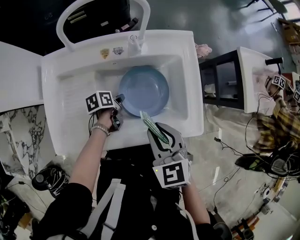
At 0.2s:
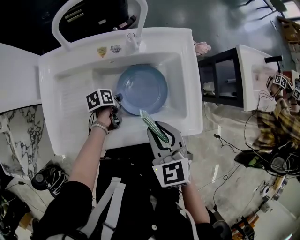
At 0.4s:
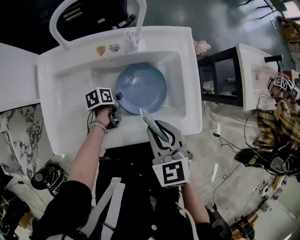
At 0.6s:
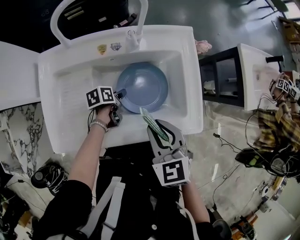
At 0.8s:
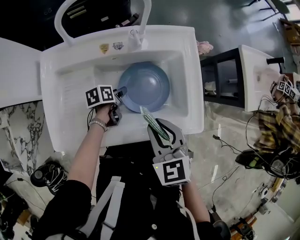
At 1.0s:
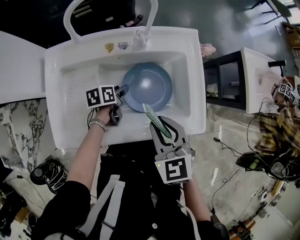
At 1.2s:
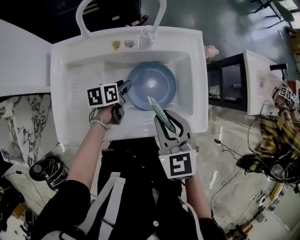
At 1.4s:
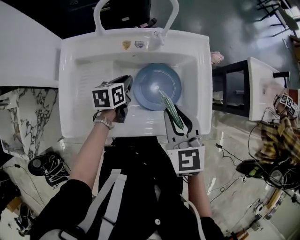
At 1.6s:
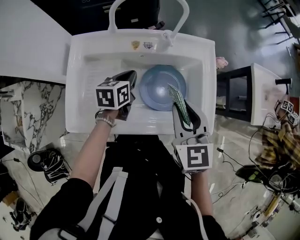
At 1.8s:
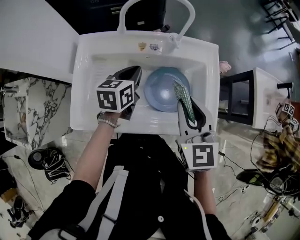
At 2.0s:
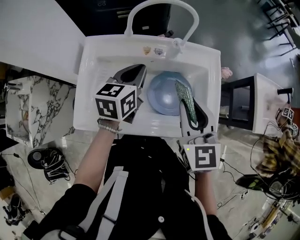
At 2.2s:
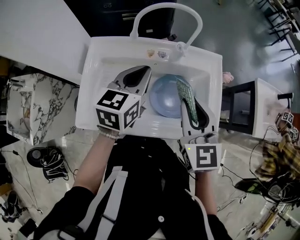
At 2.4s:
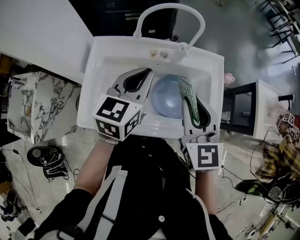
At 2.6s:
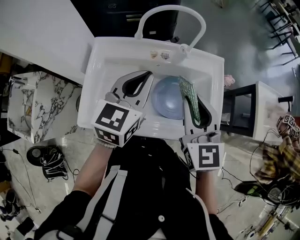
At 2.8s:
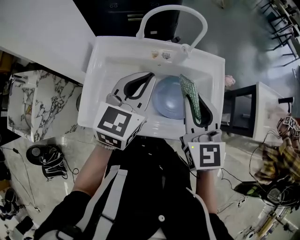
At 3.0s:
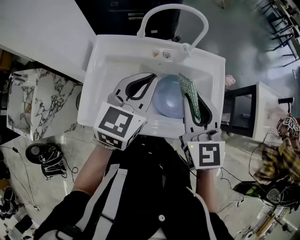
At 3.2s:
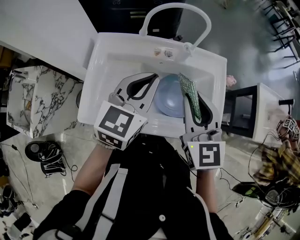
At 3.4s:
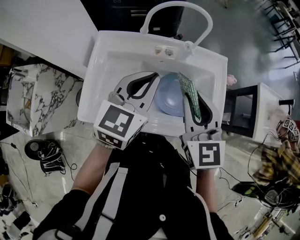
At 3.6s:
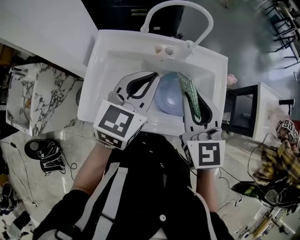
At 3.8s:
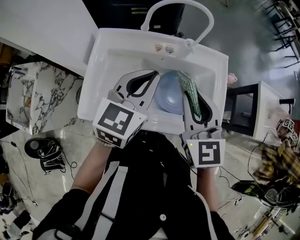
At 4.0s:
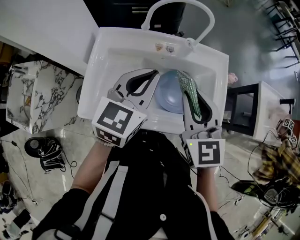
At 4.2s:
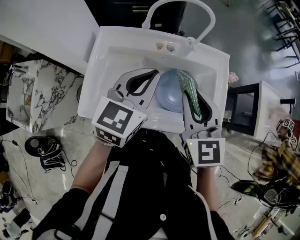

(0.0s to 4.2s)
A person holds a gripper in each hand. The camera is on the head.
0.0s - 1.4s: The left gripper heads upward, covering approximately 10 cm, turns by some 30 degrees, and opens and closes again. Meanwhile the right gripper moves about 5 cm.
1.4s - 2.8s: The right gripper shifts roughly 10 cm upward. Meanwhile the left gripper shifts roughly 25 cm upward, and changes its angle by some 40 degrees.
2.8s - 4.2s: The grippers stay close to where they were, moving slightly.

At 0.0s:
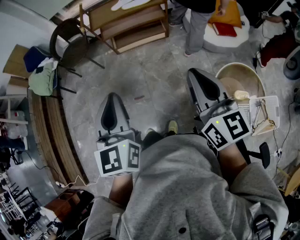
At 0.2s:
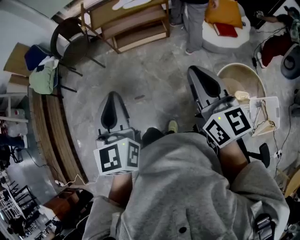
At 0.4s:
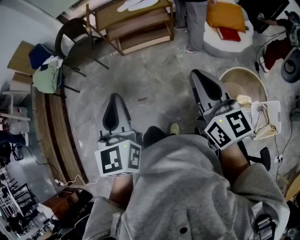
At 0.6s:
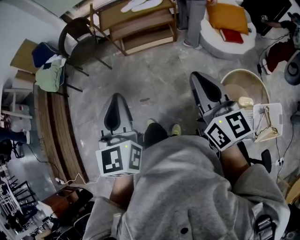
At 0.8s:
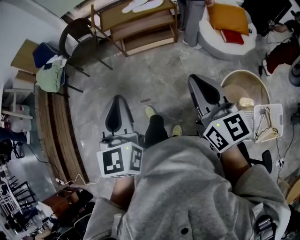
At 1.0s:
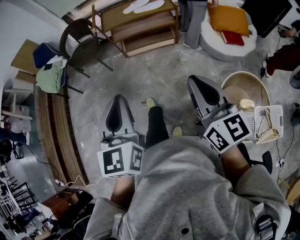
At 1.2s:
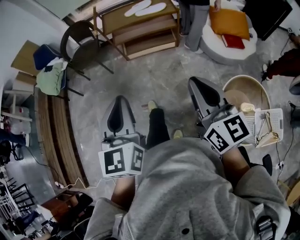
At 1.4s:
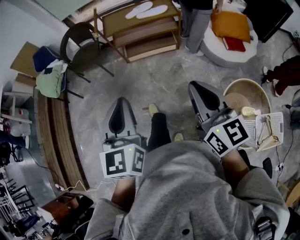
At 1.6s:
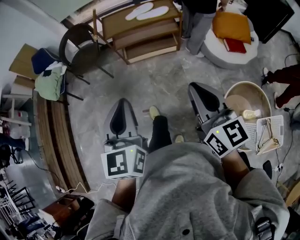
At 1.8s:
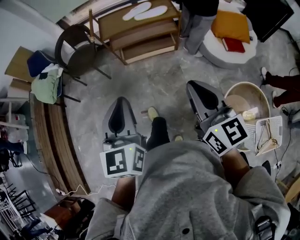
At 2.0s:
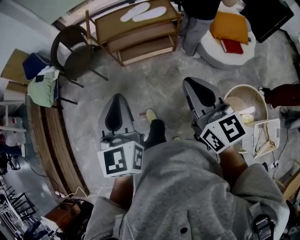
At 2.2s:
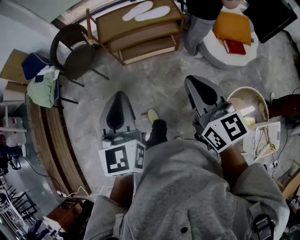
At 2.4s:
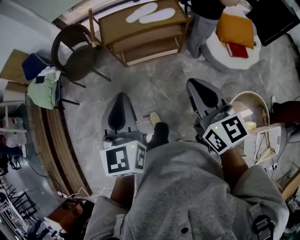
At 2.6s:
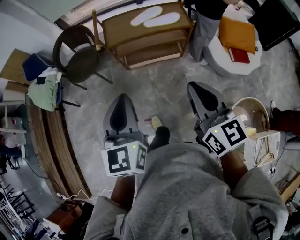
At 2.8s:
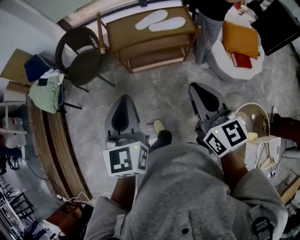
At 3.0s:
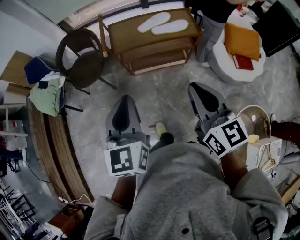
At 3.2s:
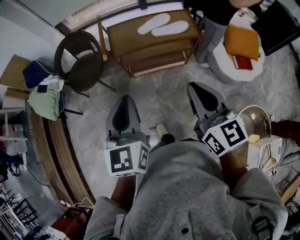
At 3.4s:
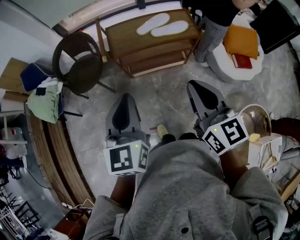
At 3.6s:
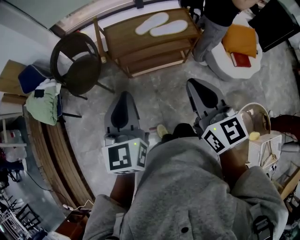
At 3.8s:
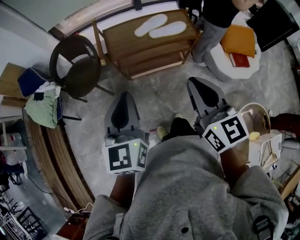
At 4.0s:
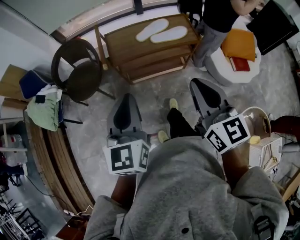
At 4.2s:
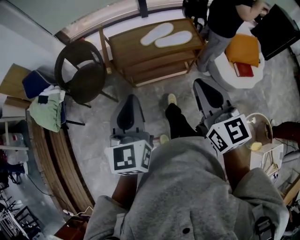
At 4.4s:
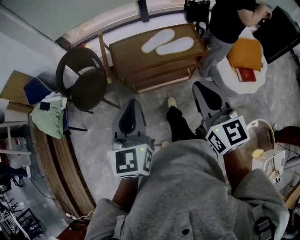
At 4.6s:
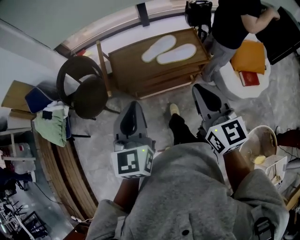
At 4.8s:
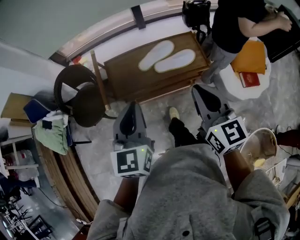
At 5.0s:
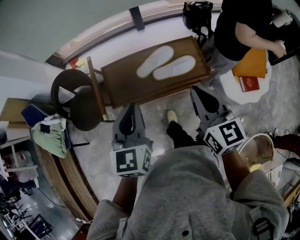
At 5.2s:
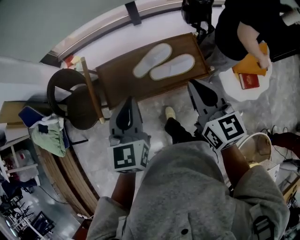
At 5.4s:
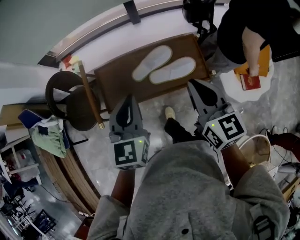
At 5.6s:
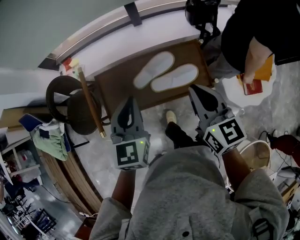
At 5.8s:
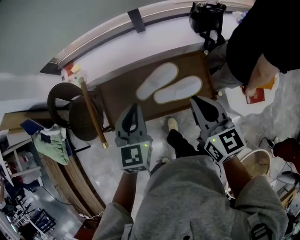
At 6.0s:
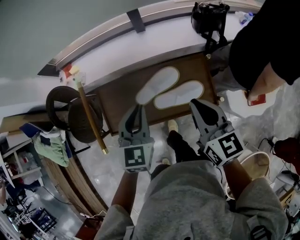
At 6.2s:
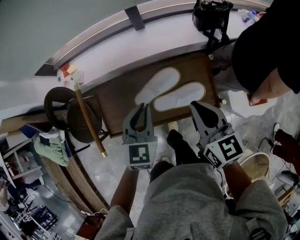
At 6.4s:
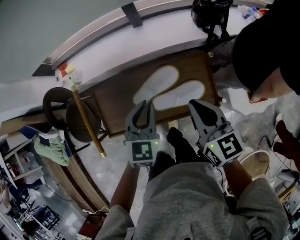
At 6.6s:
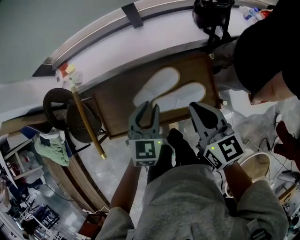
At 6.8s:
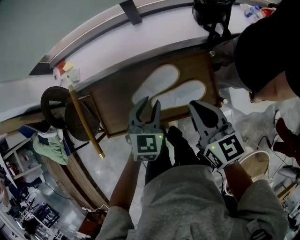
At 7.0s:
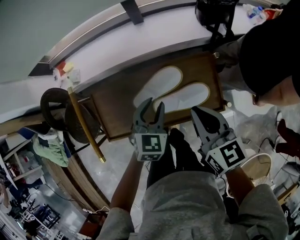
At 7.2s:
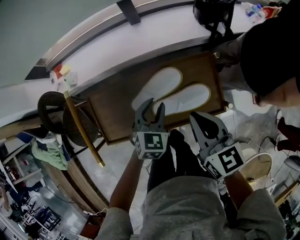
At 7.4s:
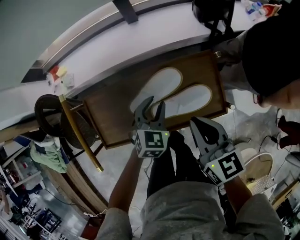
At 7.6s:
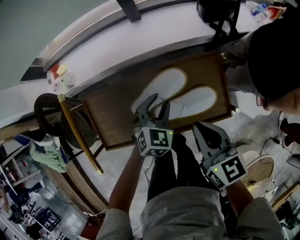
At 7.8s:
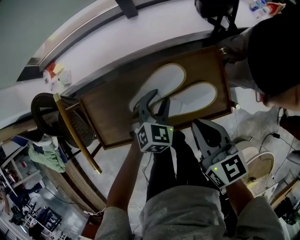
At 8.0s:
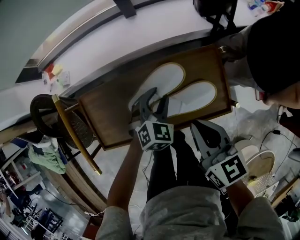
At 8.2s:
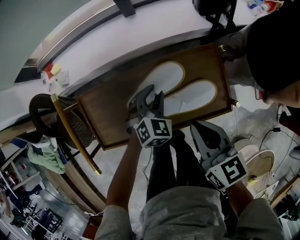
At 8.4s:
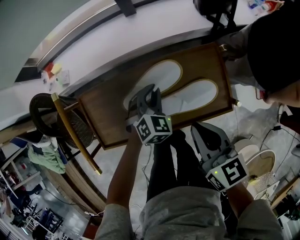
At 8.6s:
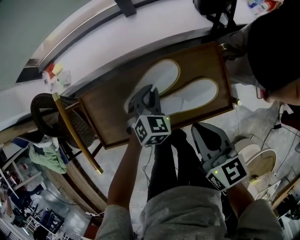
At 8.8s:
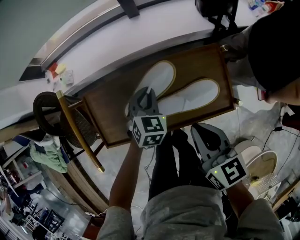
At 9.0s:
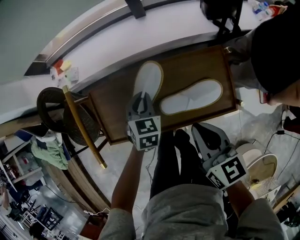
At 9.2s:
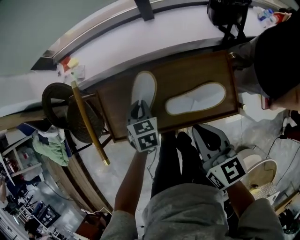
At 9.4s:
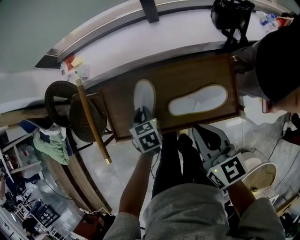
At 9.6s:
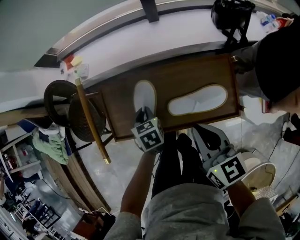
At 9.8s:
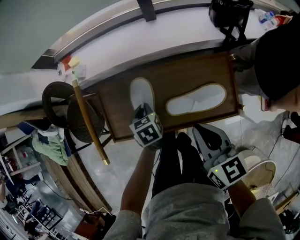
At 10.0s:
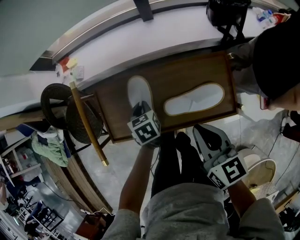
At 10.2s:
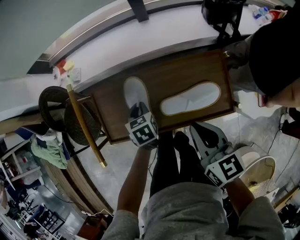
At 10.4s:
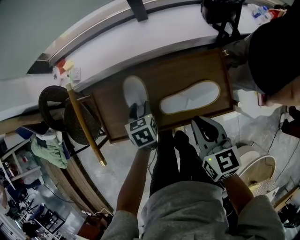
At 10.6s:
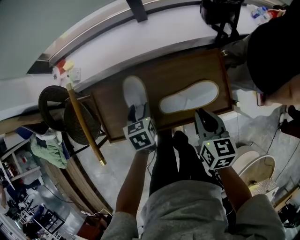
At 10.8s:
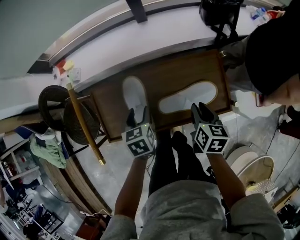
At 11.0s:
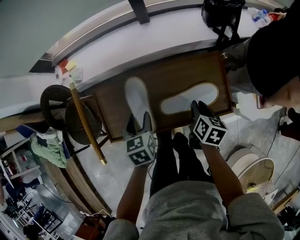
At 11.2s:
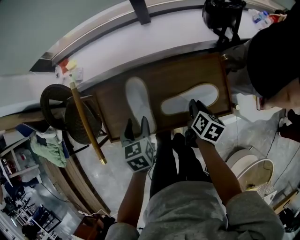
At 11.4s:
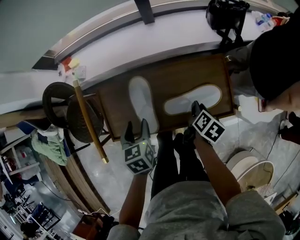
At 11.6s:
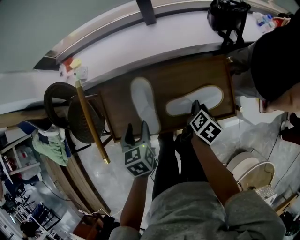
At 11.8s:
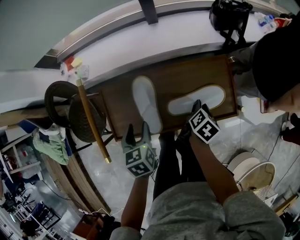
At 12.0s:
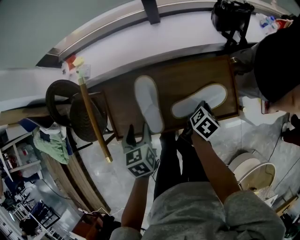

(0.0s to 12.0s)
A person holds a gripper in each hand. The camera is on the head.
0.0s - 1.6s: Both grippers travel together forward, about 5 cm.
1.6s - 3.0s: The grippers both shift forward by approximately 25 cm.
3.0s - 4.4s: Both grippers move forward, about 15 cm.
4.4s - 6.0s: Both grippers move forward, approximately 40 cm.
6.0s - 7.6s: The right gripper heads downward, covering some 15 cm; the left gripper is displaced downward by about 20 cm, swivels some 30 degrees, and opens up.
7.6s - 9.0s: The left gripper is displaced to the left by some 10 cm, turns by some 20 degrees, and closes.
9.0s - 10.4s: The left gripper ends up about 5 cm from where it was, rotates approximately 30 degrees, and opens.
10.4s - 12.0s: The left gripper shifts roughly 10 cm backward, upward and to the left, while the right gripper is displaced downward by approximately 15 cm, rotates about 60 degrees, and opens and closes again.

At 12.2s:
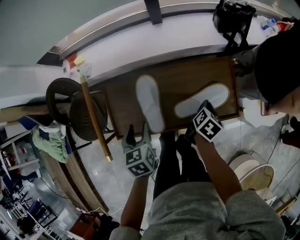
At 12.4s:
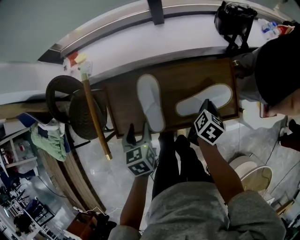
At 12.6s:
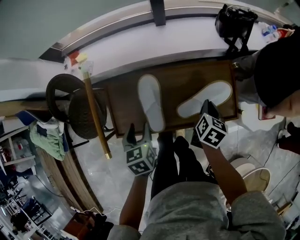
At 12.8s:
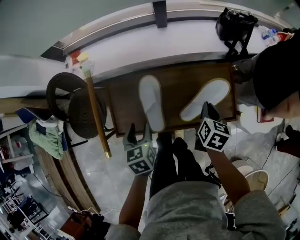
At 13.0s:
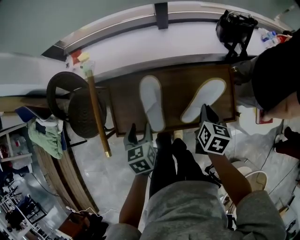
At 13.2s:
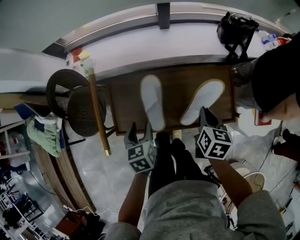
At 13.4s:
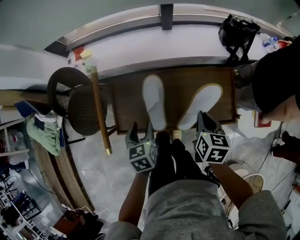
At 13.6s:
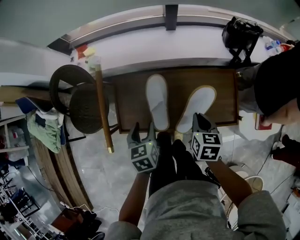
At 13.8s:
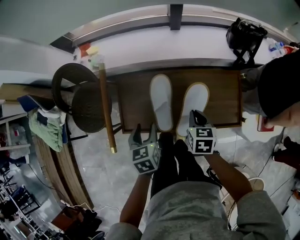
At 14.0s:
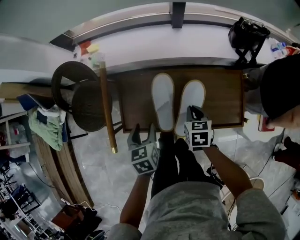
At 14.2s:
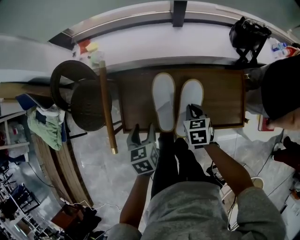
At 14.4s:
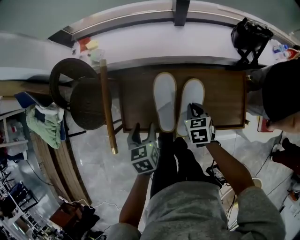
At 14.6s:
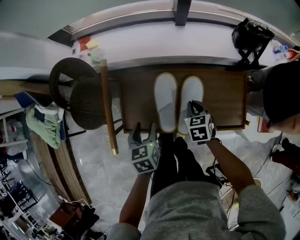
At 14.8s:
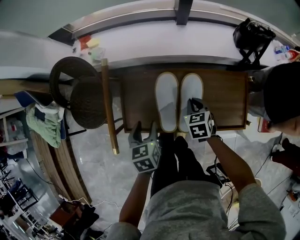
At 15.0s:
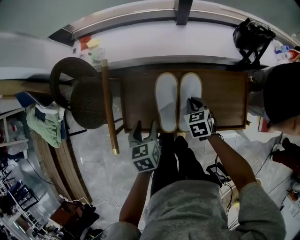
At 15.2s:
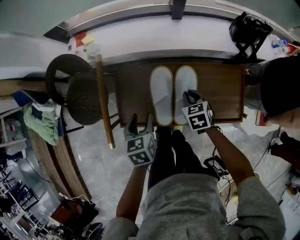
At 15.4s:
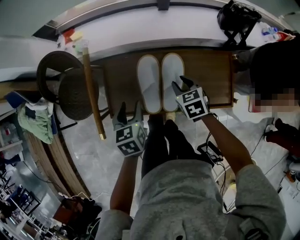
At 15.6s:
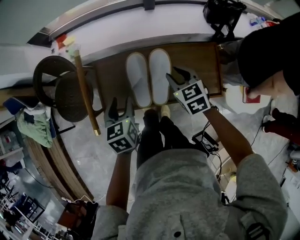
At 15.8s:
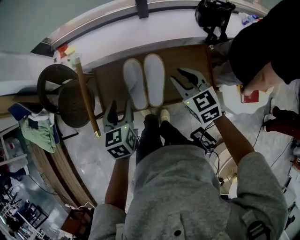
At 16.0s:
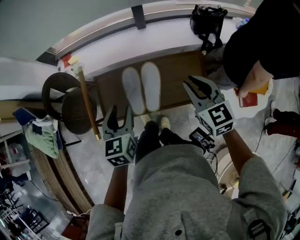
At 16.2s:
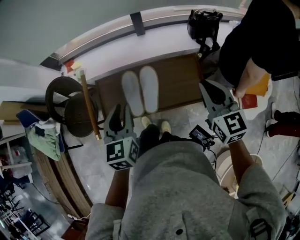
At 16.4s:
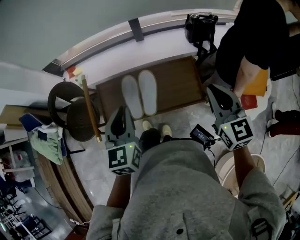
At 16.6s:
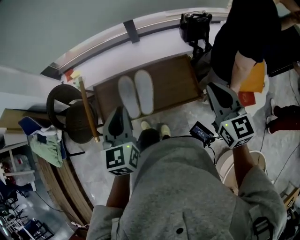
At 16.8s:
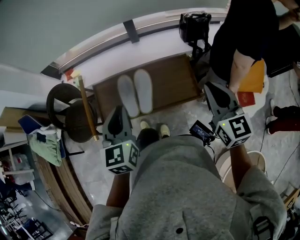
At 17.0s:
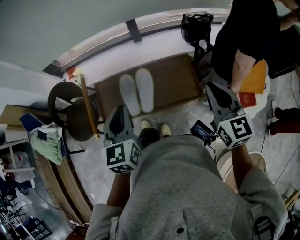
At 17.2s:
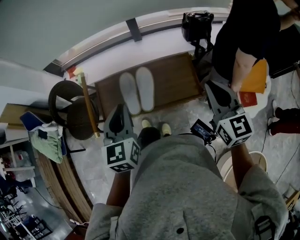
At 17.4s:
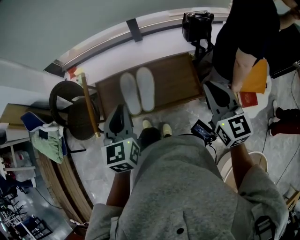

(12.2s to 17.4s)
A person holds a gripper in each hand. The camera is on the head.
12.2s - 14.0s: The right gripper travels to the left by roughly 15 cm, and twists roughly 50 degrees counterclockwise, seen from behind.
14.0s - 15.6s: The right gripper travels upward by some 10 cm, rotates approximately 20 degrees, and opens its fingers. The left gripper moves upward, approximately 5 cm.
15.6s - 17.4s: The grippers both shift upward, to the right and backward by about 30 cm. The right gripper tilts its fingers approximately 30 degrees upward, and closes its fingers; the left gripper turns by approximately 30 degrees, and closes.

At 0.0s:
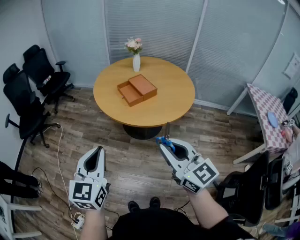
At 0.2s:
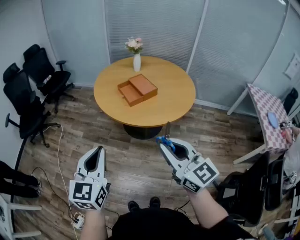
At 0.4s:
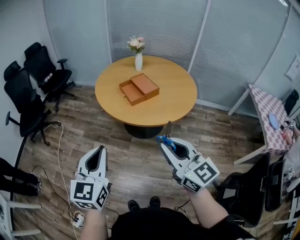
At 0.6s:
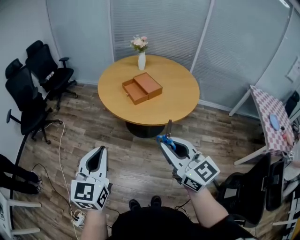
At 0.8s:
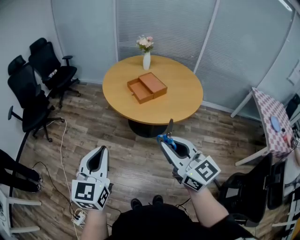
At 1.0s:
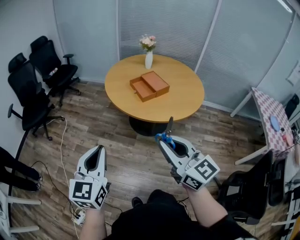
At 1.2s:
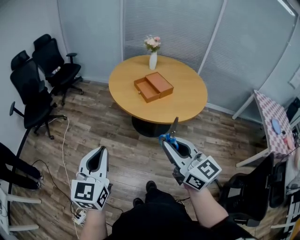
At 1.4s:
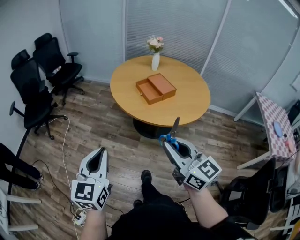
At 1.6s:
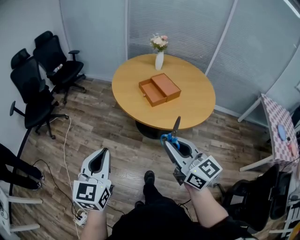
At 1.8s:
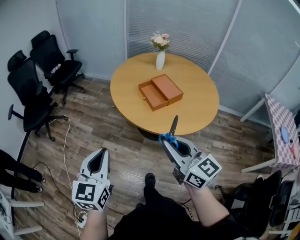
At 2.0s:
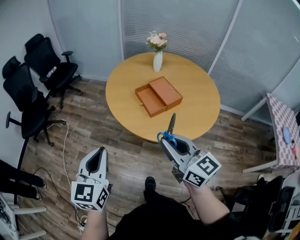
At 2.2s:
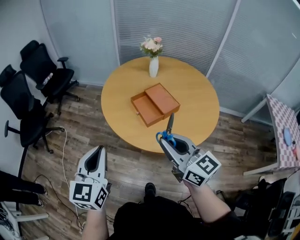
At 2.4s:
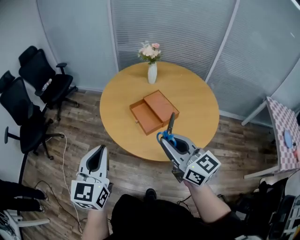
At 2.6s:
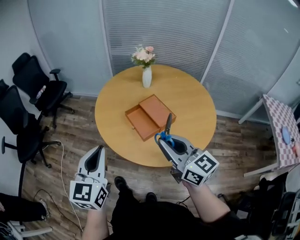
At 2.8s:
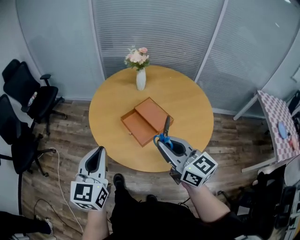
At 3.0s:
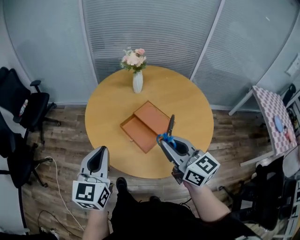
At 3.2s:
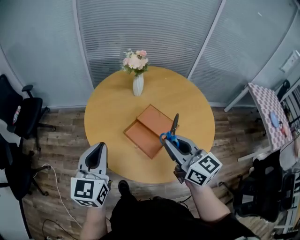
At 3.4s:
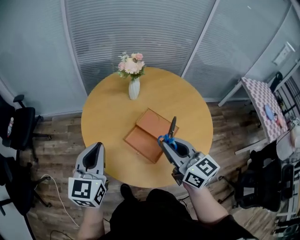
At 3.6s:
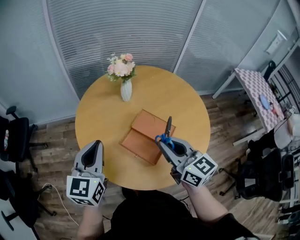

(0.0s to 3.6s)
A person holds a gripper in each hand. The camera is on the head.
0.0s - 1.8s: Both grippers move forward and to the left, approximately 15 cm.
1.8s - 3.6s: Both grippers are carried roughly 50 cm. The right gripper rotates about 30 degrees, while the left gripper changes its angle by about 30 degrees.
